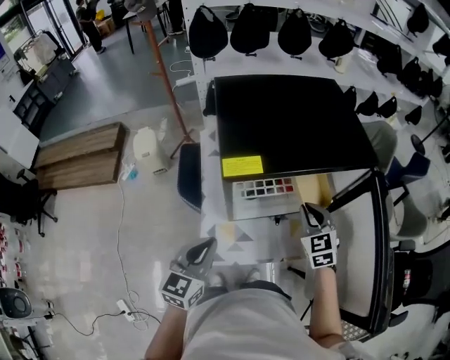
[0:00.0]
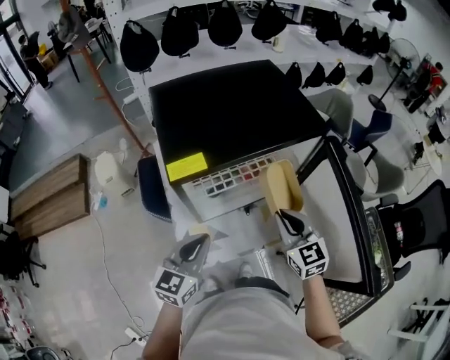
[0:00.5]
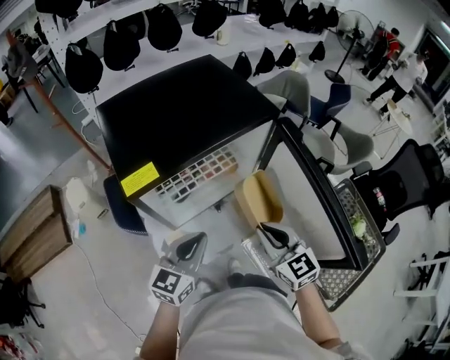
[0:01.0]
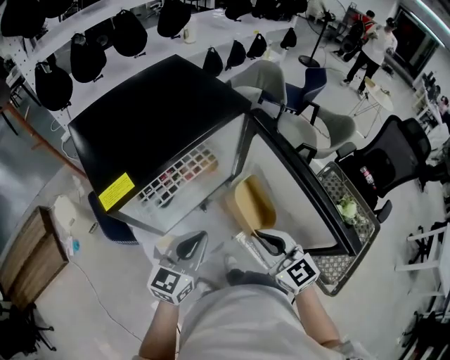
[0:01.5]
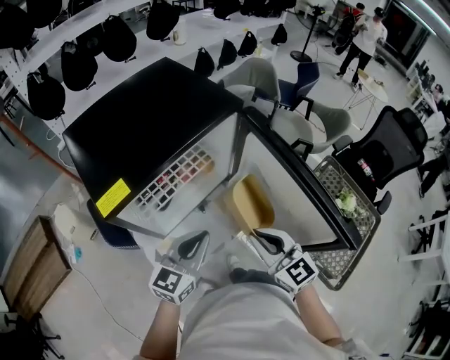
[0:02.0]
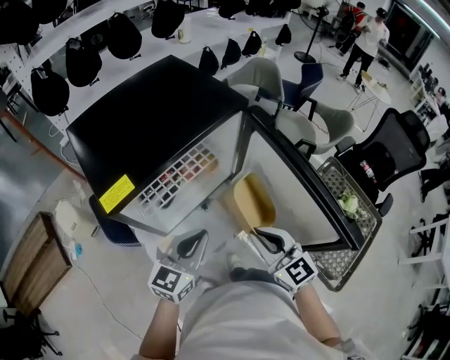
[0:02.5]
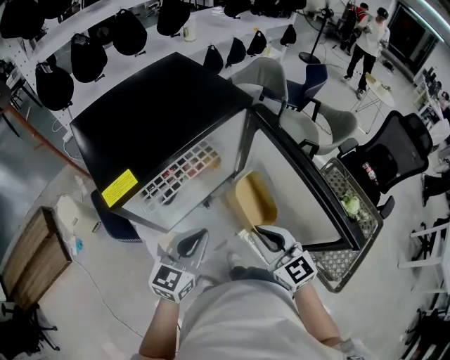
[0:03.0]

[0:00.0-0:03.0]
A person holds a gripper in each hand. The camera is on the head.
0:00.0 to 0:01.5: The right gripper moves backward and to the right, roughly 20 cm, and rotates about 30 degrees. The left gripper moves to the right, roughly 15 cm, and swivels some 40 degrees.
0:01.5 to 0:03.0: Neither gripper changes place.

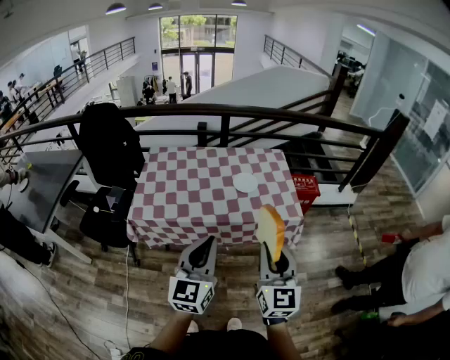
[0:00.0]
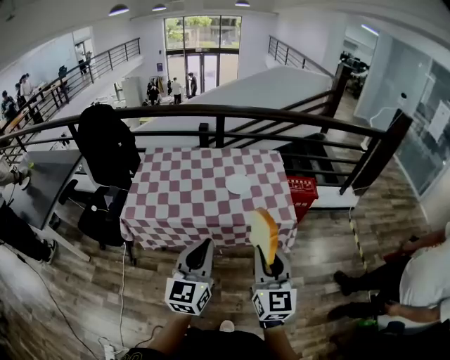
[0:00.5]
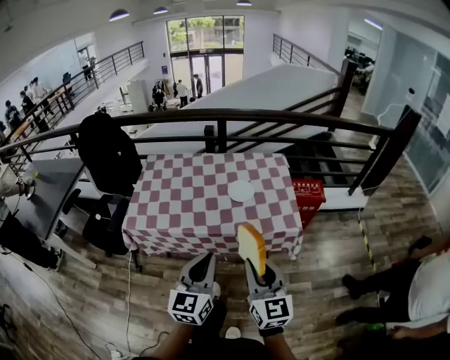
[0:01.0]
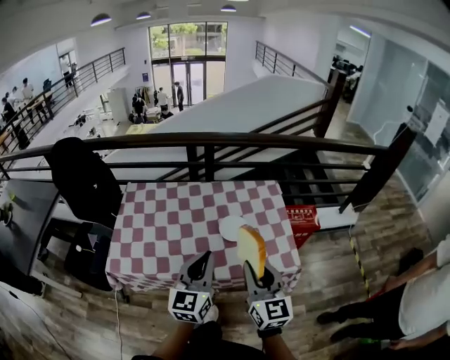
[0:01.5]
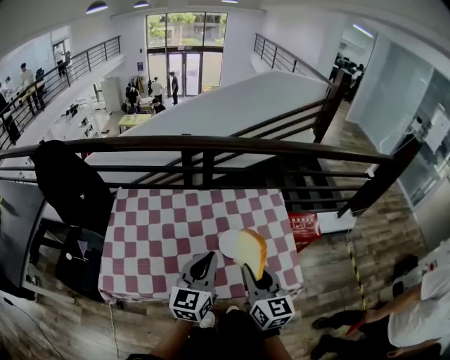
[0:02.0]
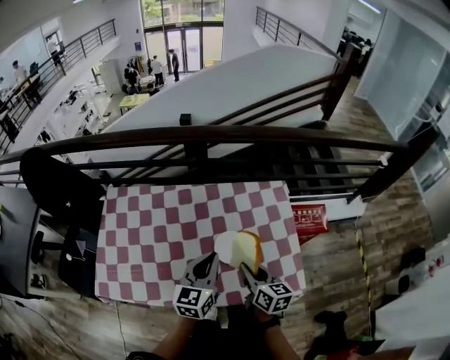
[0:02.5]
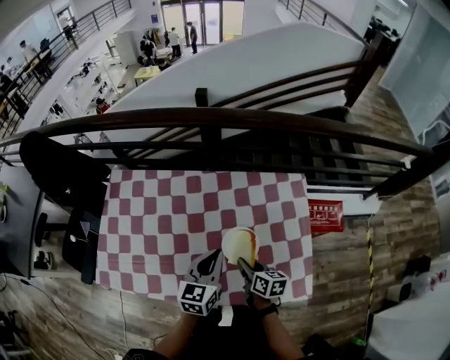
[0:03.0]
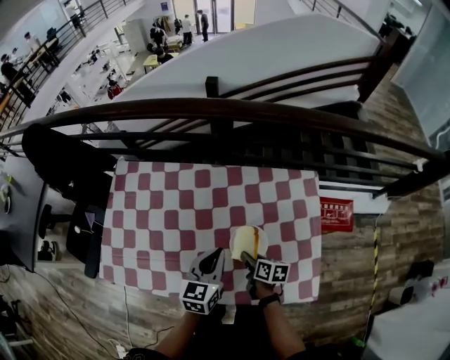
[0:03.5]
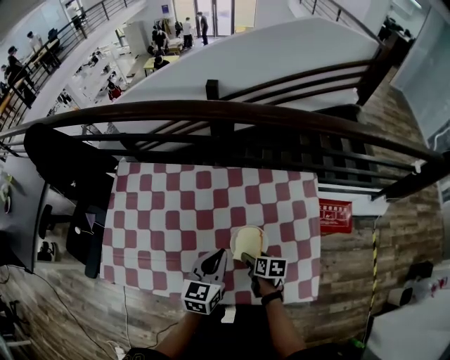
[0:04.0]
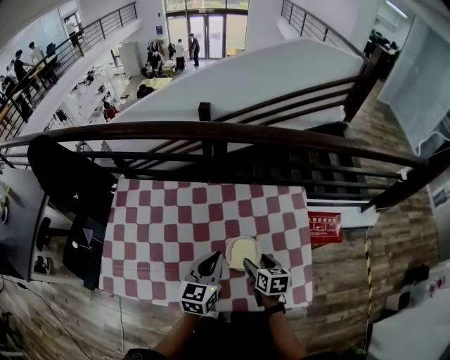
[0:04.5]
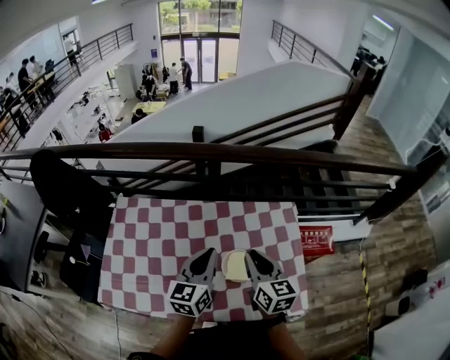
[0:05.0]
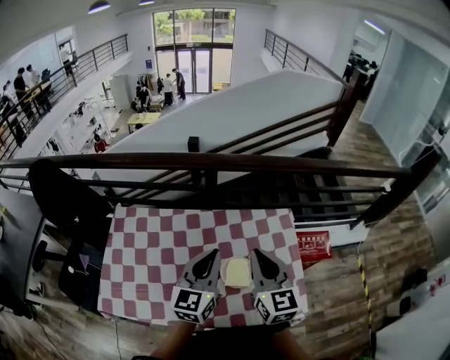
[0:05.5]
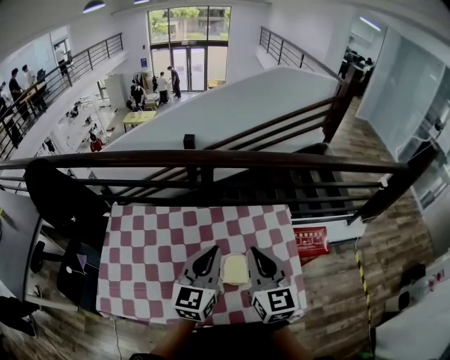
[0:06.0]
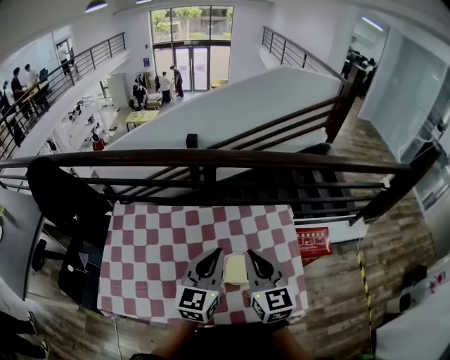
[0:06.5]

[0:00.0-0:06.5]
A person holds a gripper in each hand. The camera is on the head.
0:00.0 to 0:02.0: Both grippers move forward, about 35 cm.
0:02.0 to 0:04.5: The left gripper shifts some 15 cm downward and forward, while the right gripper shifts roughly 25 cm downward and forward, tilts its fingers about 40 degrees downward, and opens its fingers.
0:04.5 to 0:06.5: The right gripper shifts some 25 cm upward, points its fingers about 30 degrees further upward, and closes, while the left gripper shifts approximately 15 cm upward.

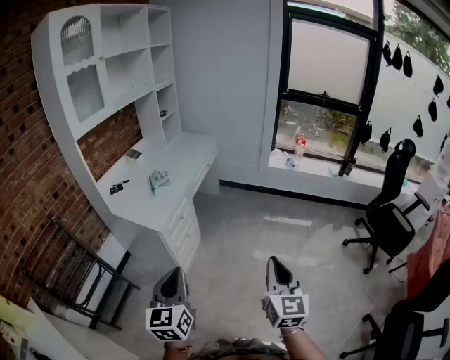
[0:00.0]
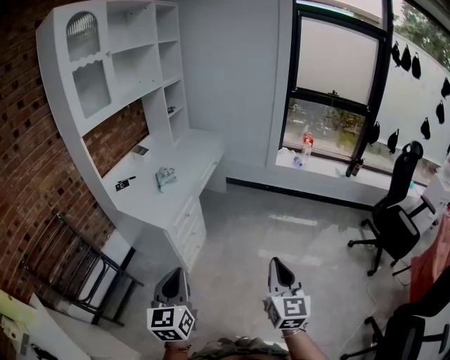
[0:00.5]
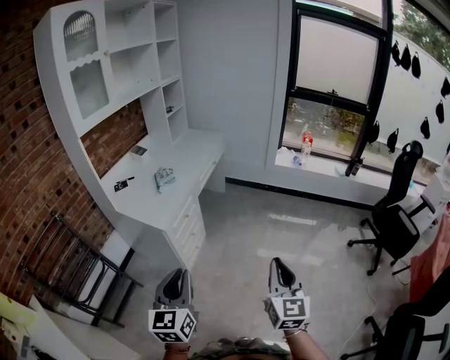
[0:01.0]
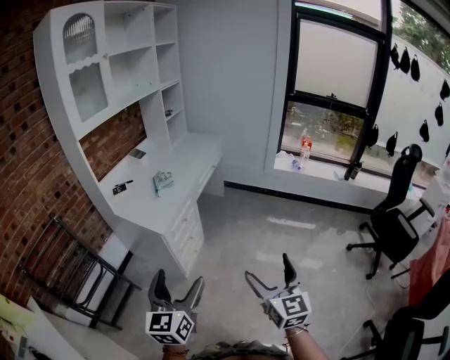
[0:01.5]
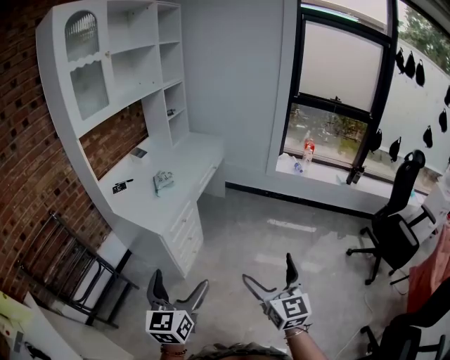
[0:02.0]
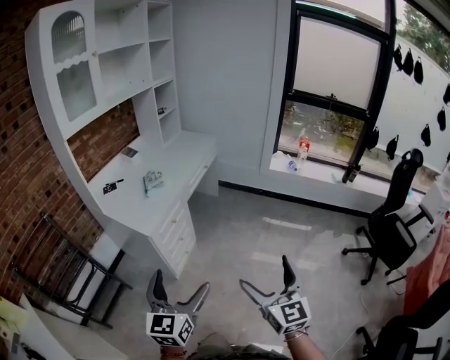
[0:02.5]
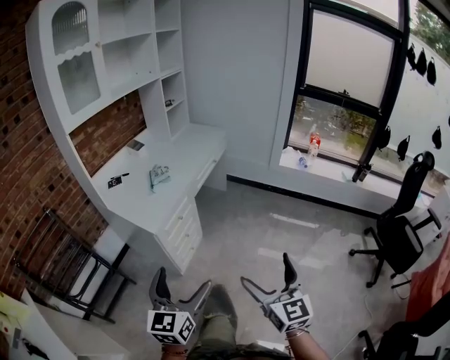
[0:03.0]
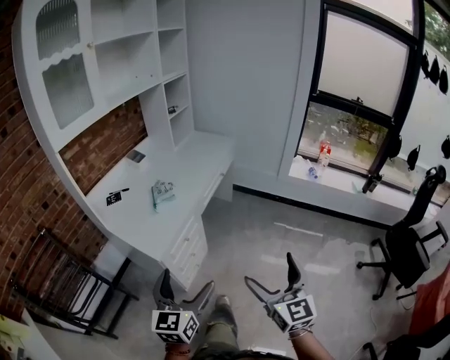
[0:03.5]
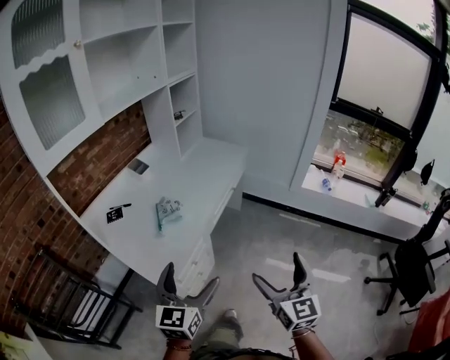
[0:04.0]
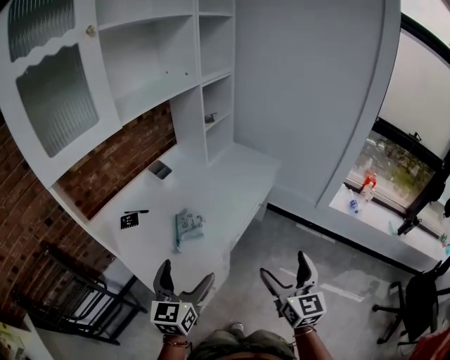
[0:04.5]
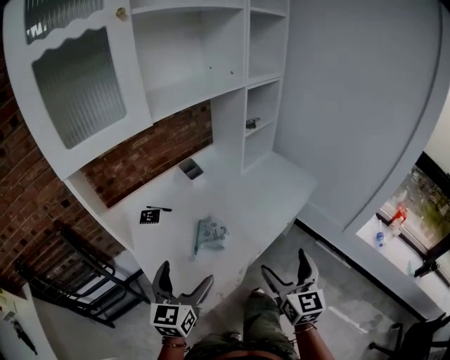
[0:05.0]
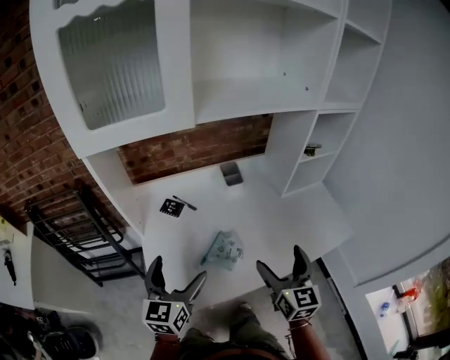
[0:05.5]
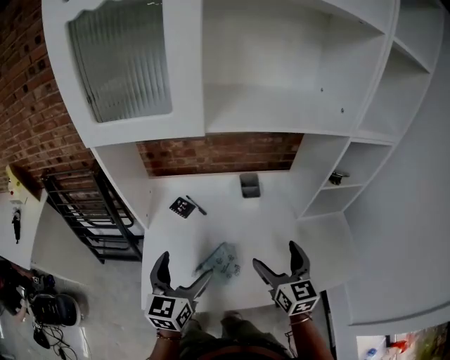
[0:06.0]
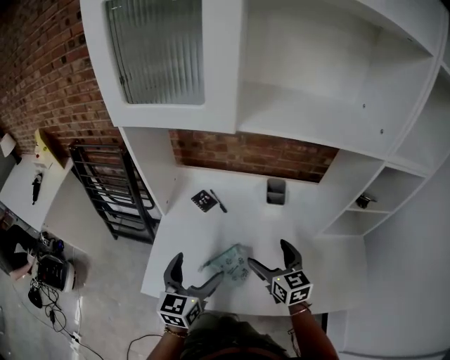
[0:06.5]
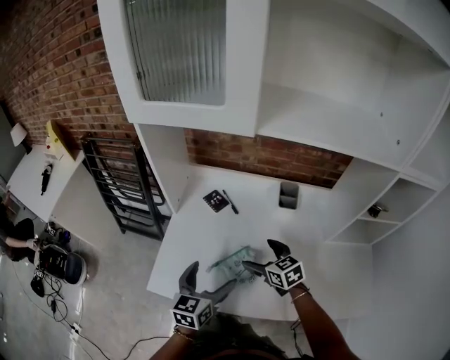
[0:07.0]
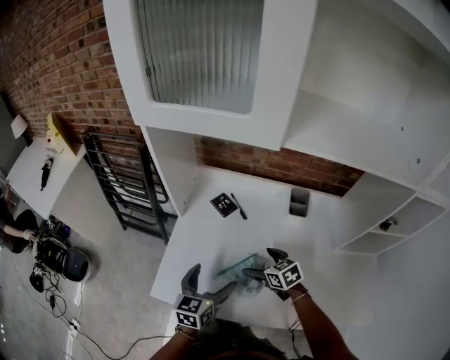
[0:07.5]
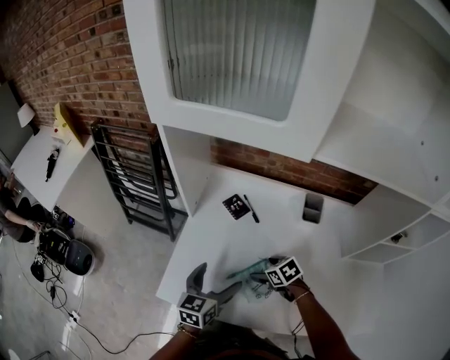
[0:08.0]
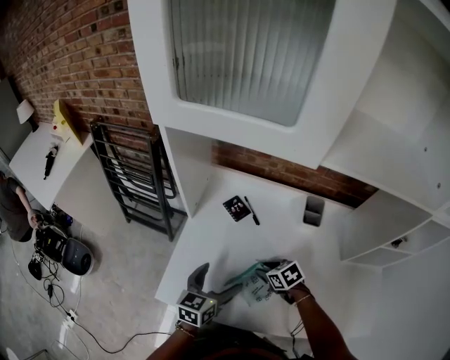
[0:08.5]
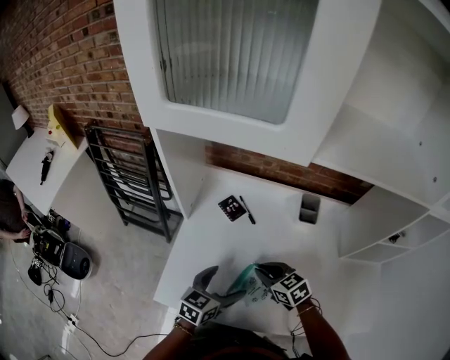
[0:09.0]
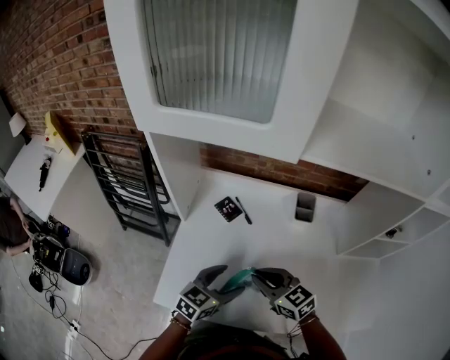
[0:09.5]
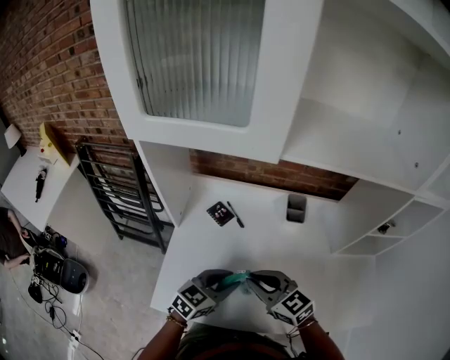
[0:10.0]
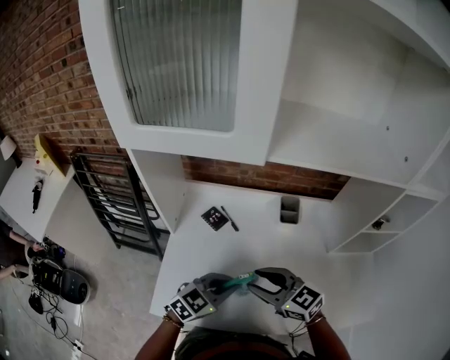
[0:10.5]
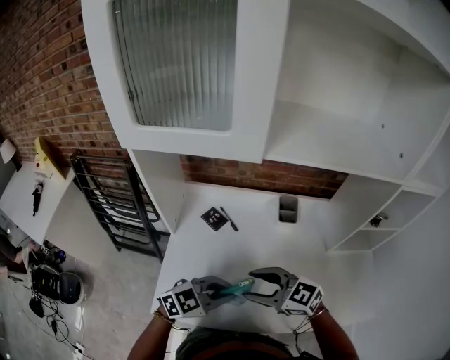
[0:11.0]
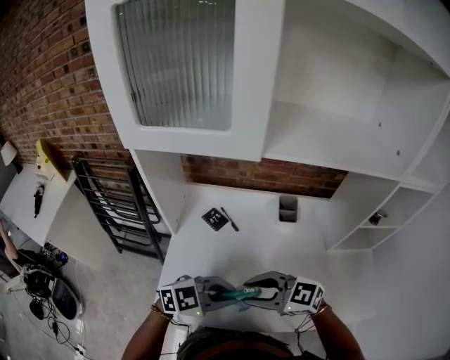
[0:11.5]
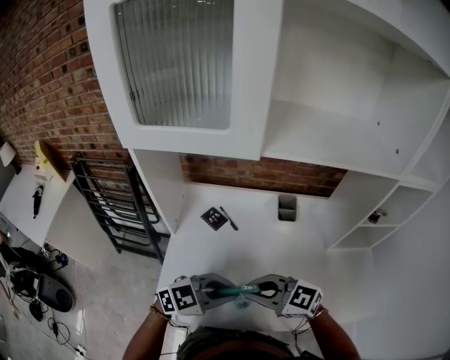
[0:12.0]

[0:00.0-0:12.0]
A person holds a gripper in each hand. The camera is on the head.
0:00.0 to 0:02.0: The right gripper opens its fingers. The left gripper opens its fingers.
0:02.0 to 0:04.0: The two grippers go some 35 cm forward.
0:04.0 to 0:06.0: The left gripper ends up about 35 cm from where it was, and swivels roughly 60 degrees, while the right gripper moves some 60 cm, and swivels about 60 degrees.
0:06.0 to 0:08.0: The right gripper shifts roughly 25 cm downward, and points its fingers some 50 degrees further downward. The left gripper moves downward, approximately 15 cm.
0:08.0 to 0:10.0: The right gripper is displaced upward by roughly 20 cm, tilts its fingers some 40 degrees upward, and closes its fingers, while the left gripper shifts some 10 cm to the right, rotates approximately 40 degrees, and closes up.
0:10.0 to 0:12.0: The right gripper ends up roughly 5 cm from where it was, and turns by about 20 degrees; the left gripper changes place by about 10 cm, and swivels approximately 30 degrees.

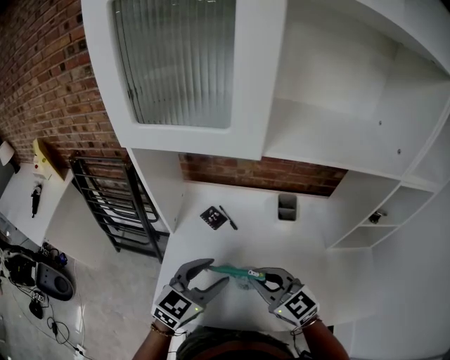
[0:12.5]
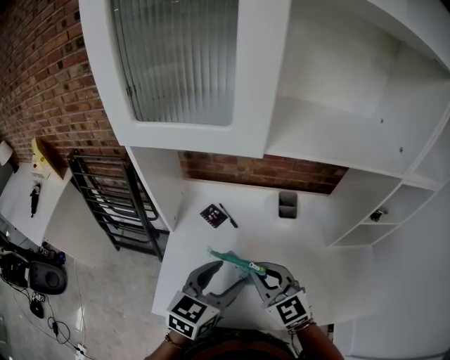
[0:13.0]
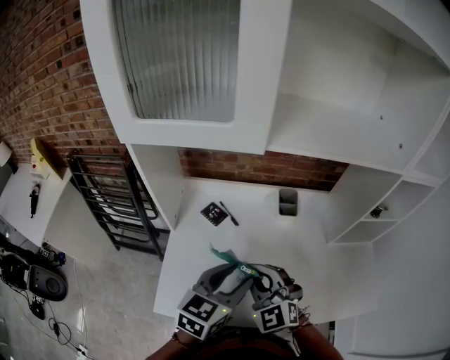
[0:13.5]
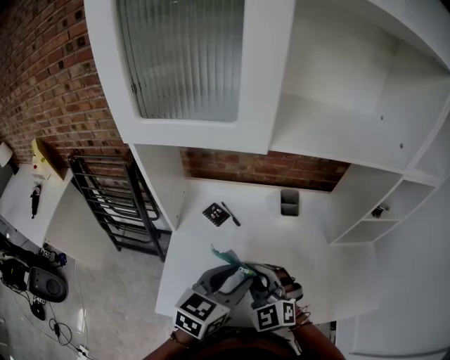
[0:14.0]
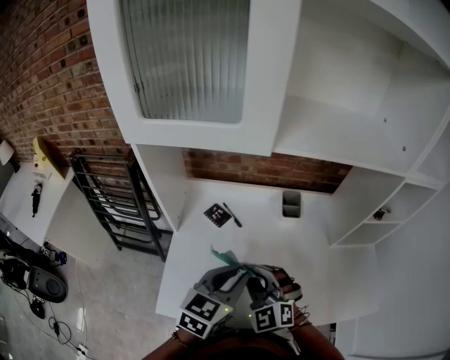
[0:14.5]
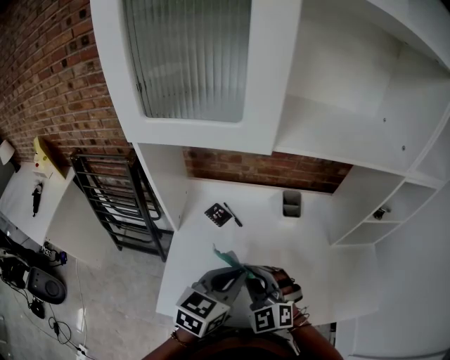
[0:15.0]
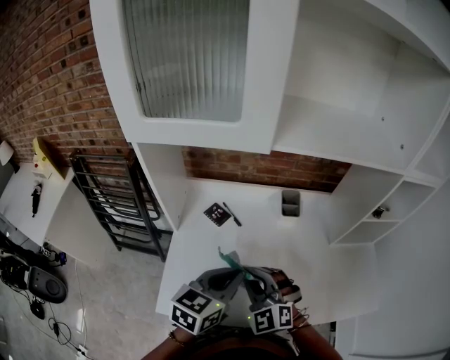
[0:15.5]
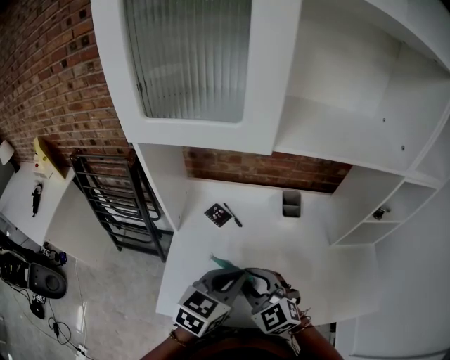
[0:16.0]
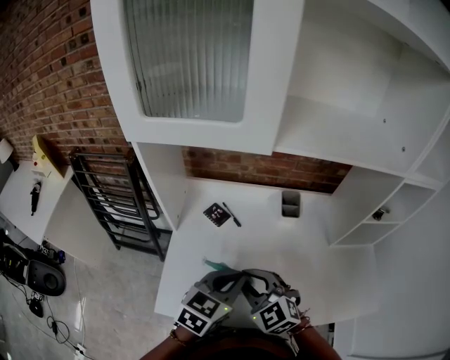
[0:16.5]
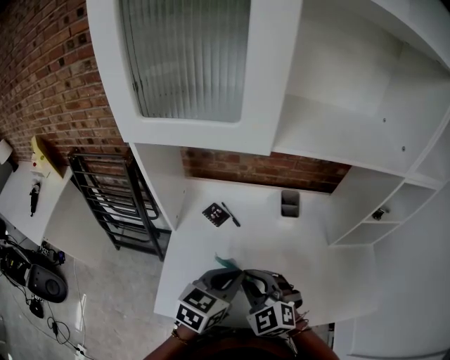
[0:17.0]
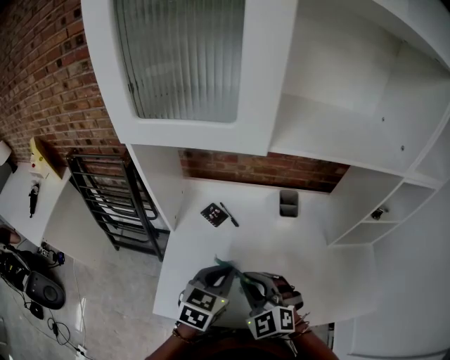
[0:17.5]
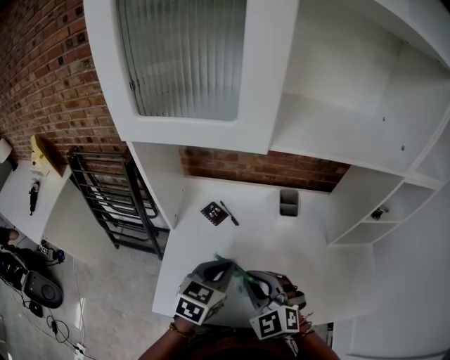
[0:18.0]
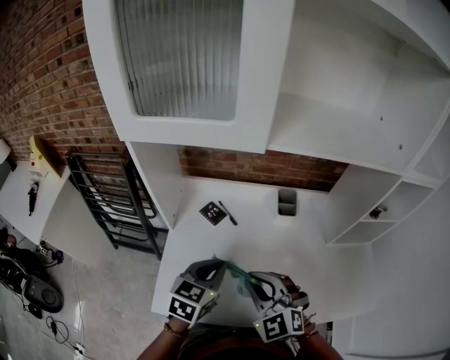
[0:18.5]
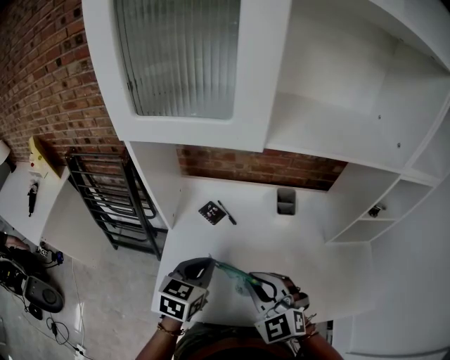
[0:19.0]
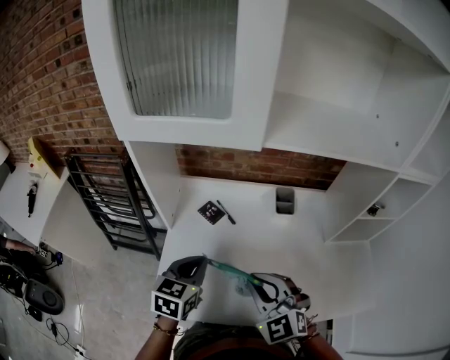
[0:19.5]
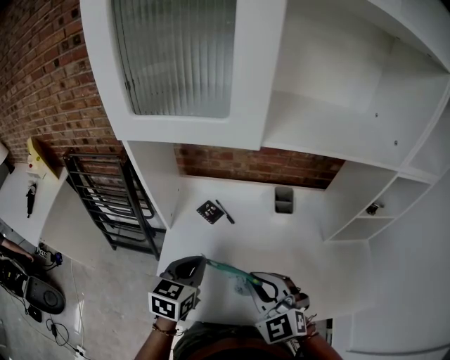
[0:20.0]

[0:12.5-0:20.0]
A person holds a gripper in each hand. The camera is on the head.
0:12.5 to 0:14.5: The right gripper changes its angle by roughly 30 degrees.
0:16.5 to 0:18.0: The grippers stay close to where they were, moving slightly.
0:18.0 to 0:20.0: The left gripper goes roughly 5 cm to the left.
